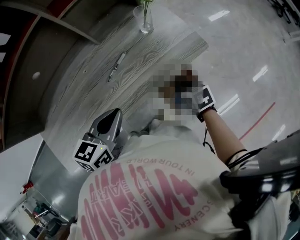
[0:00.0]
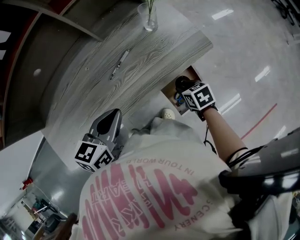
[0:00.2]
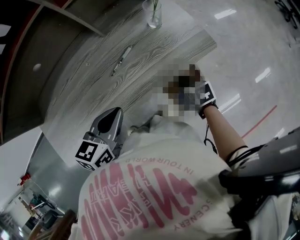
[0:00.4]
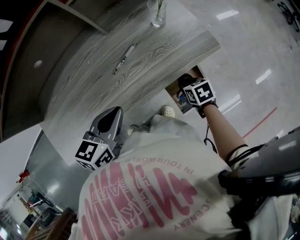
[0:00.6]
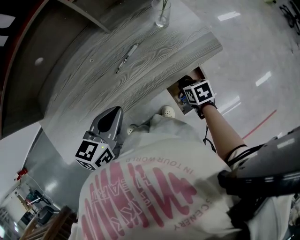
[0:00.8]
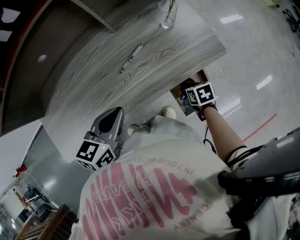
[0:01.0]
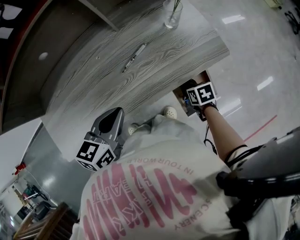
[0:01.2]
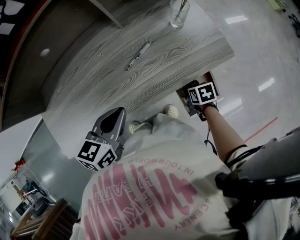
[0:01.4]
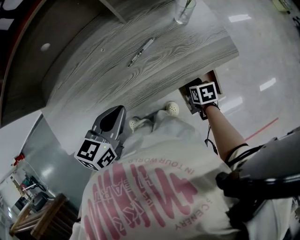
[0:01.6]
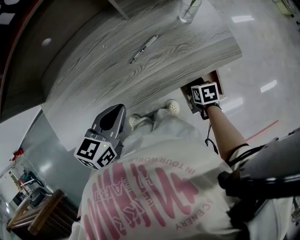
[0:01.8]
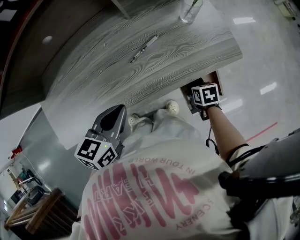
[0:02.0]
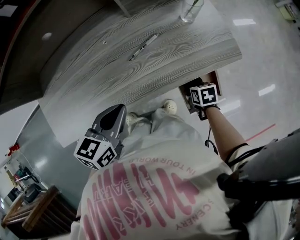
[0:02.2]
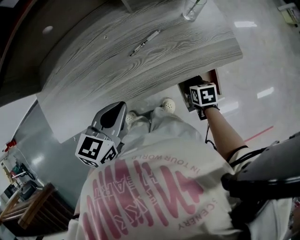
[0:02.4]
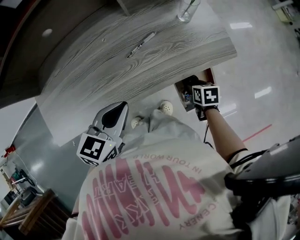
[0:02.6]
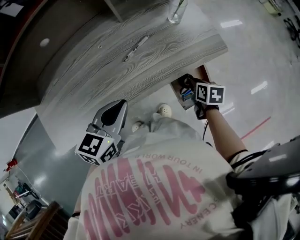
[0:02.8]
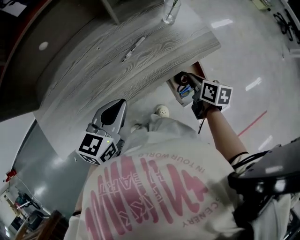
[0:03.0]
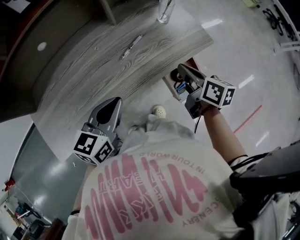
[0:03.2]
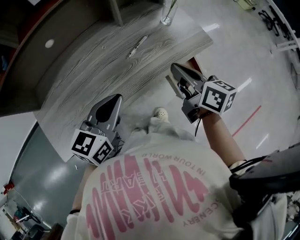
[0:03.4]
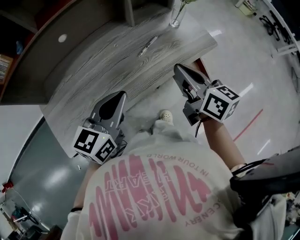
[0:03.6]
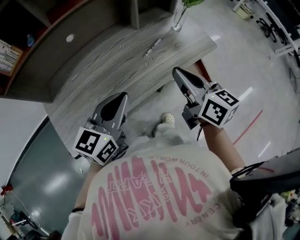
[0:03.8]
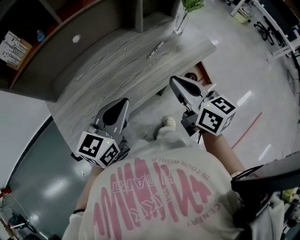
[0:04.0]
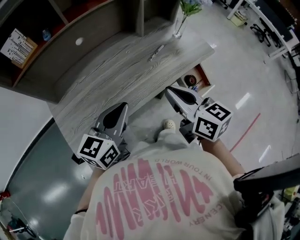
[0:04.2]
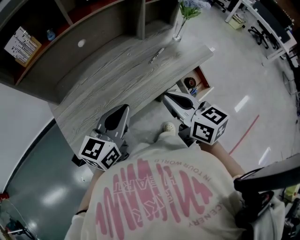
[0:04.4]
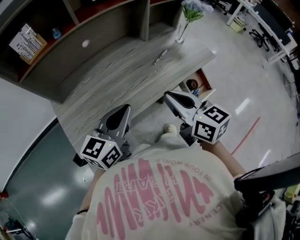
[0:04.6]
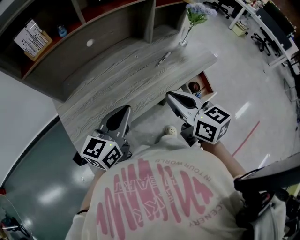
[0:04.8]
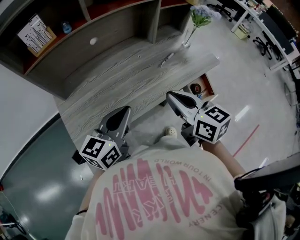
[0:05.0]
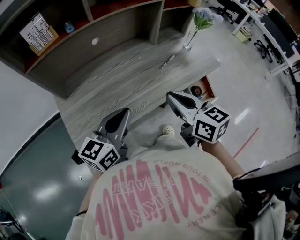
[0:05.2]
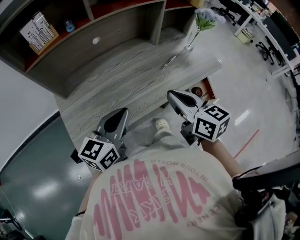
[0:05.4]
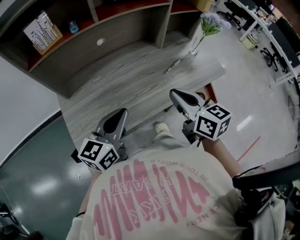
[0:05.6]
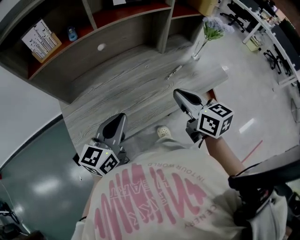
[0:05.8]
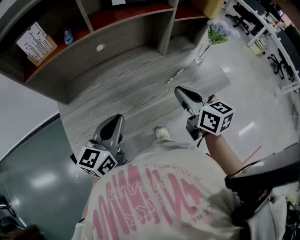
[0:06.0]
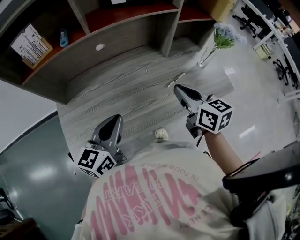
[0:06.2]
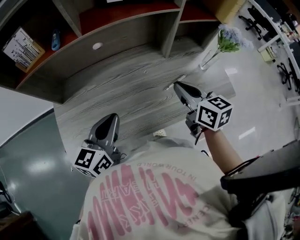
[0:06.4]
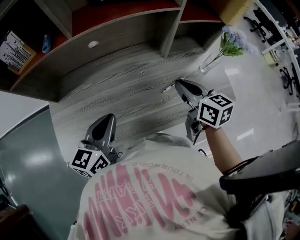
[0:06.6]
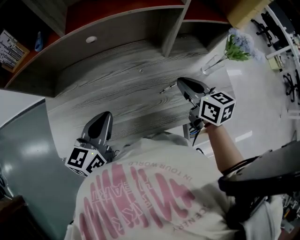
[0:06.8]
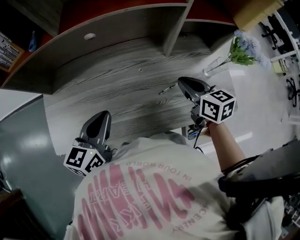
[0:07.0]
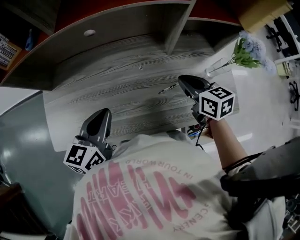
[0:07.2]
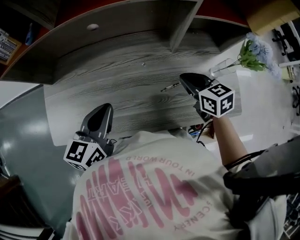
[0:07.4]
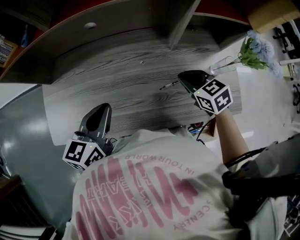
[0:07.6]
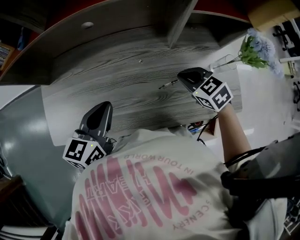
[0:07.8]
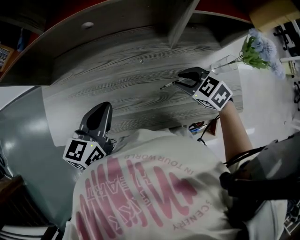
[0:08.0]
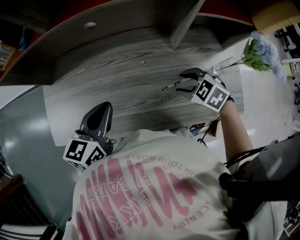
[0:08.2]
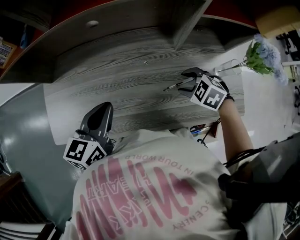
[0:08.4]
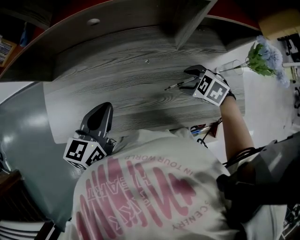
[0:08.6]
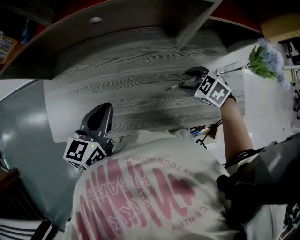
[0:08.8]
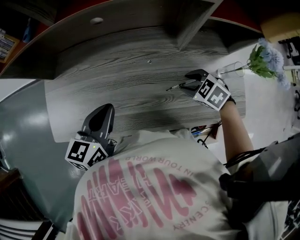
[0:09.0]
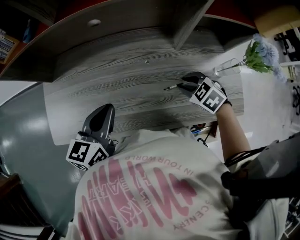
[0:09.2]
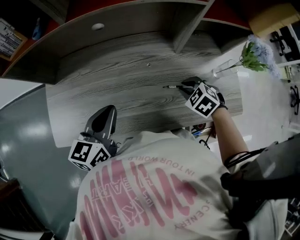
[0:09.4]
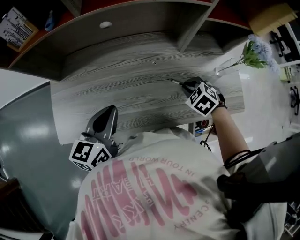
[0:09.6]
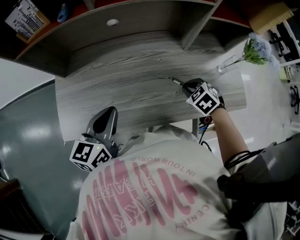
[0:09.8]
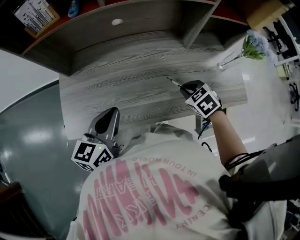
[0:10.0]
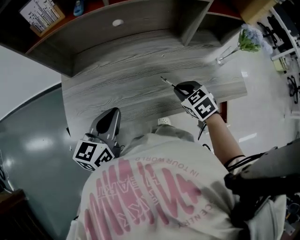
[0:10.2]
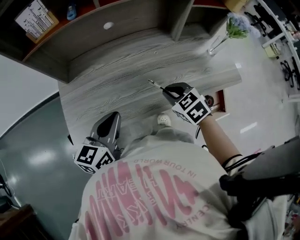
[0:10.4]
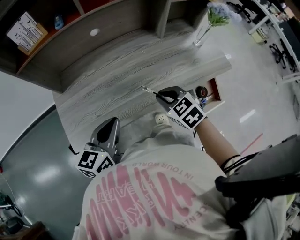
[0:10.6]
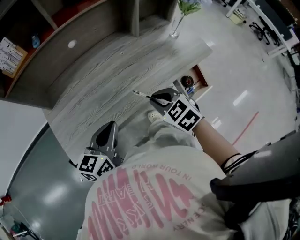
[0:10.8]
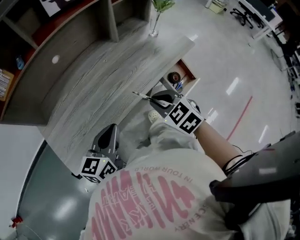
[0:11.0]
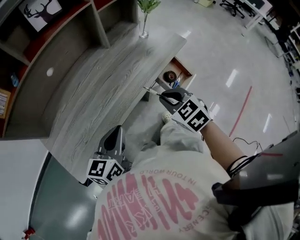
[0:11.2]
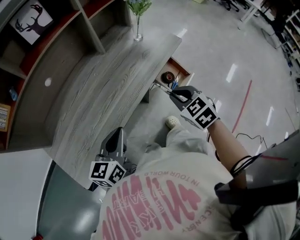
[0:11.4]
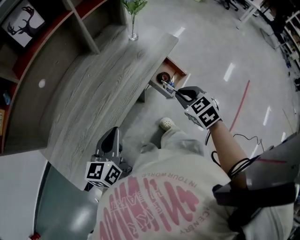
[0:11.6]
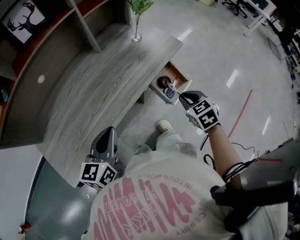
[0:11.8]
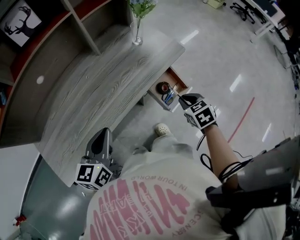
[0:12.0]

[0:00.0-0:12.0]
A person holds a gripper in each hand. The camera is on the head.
0:00.0 to 0:01.6: The left gripper goes roughly 5 cm to the left. The right gripper goes some 10 cm downward.
0:01.6 to 0:03.0: The right gripper moves upward, approximately 15 cm, turns by roughly 40 degrees, and closes.
0:03.0 to 0:04.4: The right gripper goes approximately 40 cm to the left, upward and backward, and swivels roughly 40 degrees. Meanwhile the left gripper moves to the left, backward and upward, some 20 cm.
0:04.4 to 0:06.0: The right gripper heads forward, covering some 15 cm; the left gripper is displaced forward and to the left by roughly 10 cm.
0:06.0 to 0:07.6: The right gripper moves downward, forward and to the right, about 25 cm, and swivels about 50 degrees. Meanwhile the left gripper travels forward, to the right and downward by some 10 cm, and turns by about 20 degrees.
0:07.6 to 0:09.0: The right gripper travels downward by some 5 cm, changes its angle by approximately 30 degrees, and opens its fingers.
0:09.0 to 0:10.4: The left gripper heads to the left and backward, covering some 15 cm; the right gripper moves to the left, backward and upward, approximately 20 cm, rotates roughly 30 degrees, and closes up.
0:10.4 to 0:12.0: The left gripper moves some 15 cm, while the right gripper moves roughly 35 cm, and turns by approximately 40 degrees.

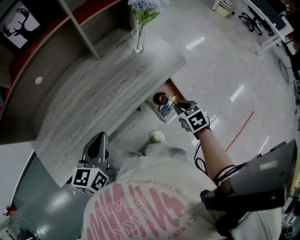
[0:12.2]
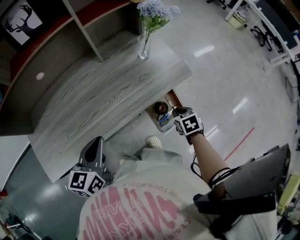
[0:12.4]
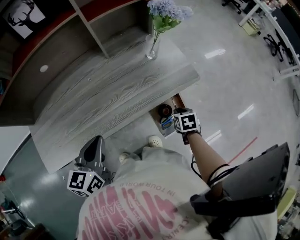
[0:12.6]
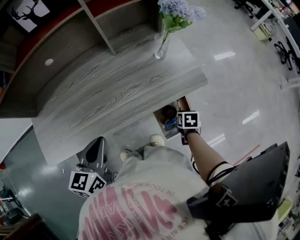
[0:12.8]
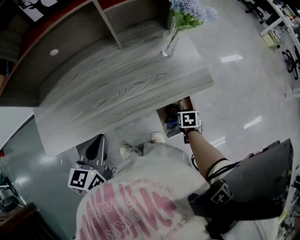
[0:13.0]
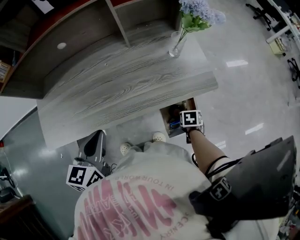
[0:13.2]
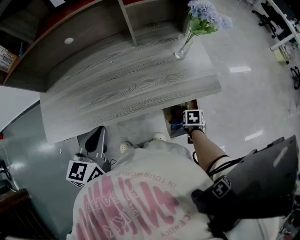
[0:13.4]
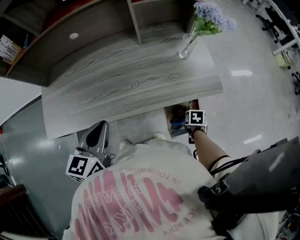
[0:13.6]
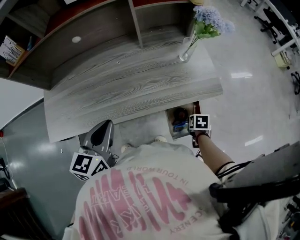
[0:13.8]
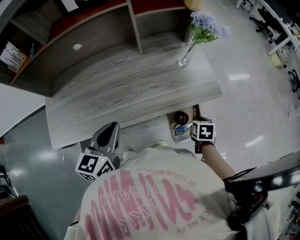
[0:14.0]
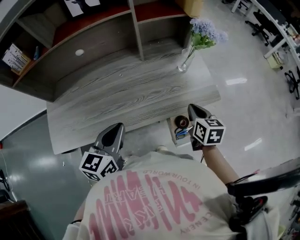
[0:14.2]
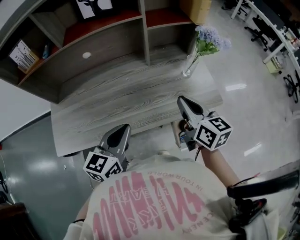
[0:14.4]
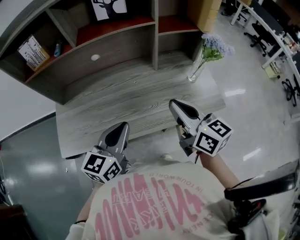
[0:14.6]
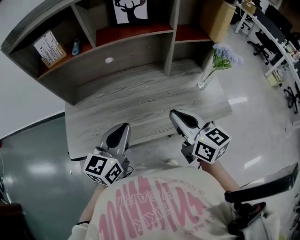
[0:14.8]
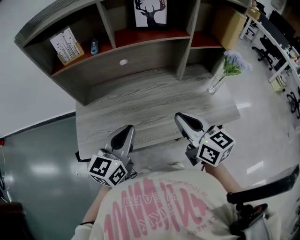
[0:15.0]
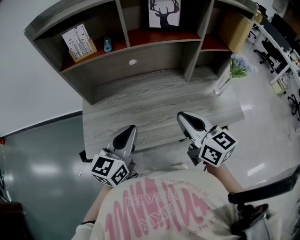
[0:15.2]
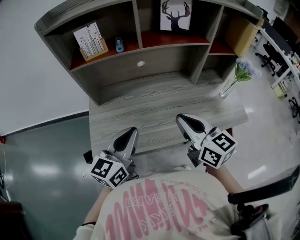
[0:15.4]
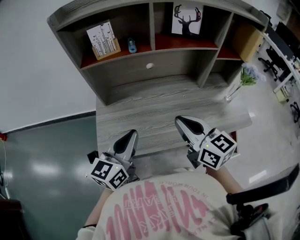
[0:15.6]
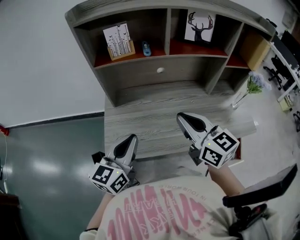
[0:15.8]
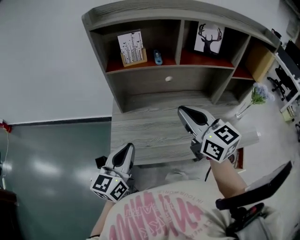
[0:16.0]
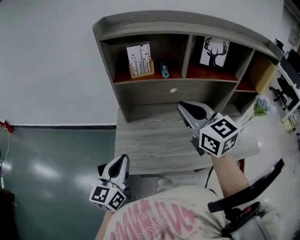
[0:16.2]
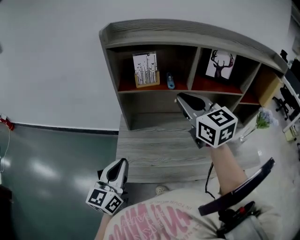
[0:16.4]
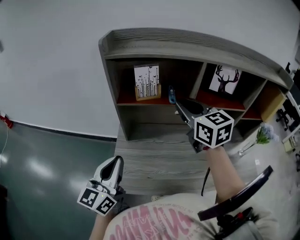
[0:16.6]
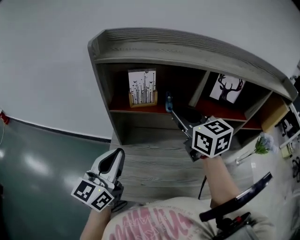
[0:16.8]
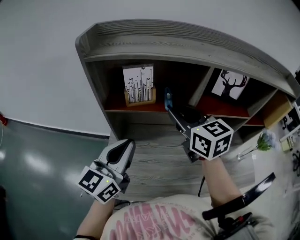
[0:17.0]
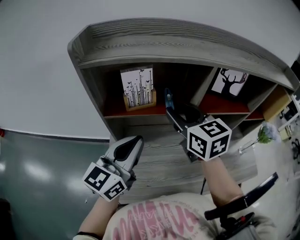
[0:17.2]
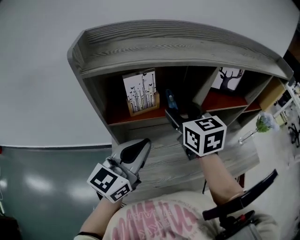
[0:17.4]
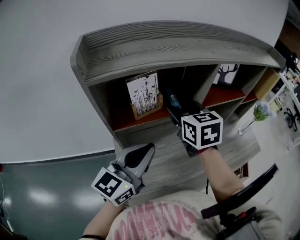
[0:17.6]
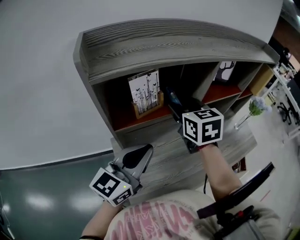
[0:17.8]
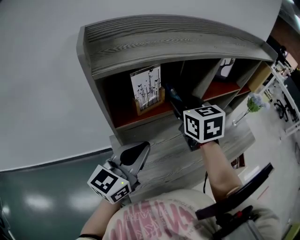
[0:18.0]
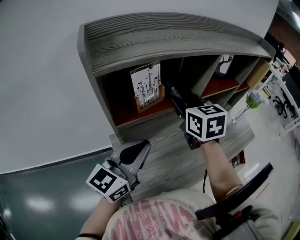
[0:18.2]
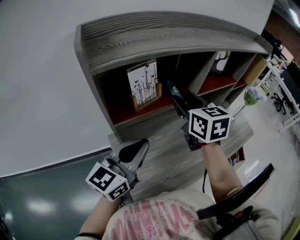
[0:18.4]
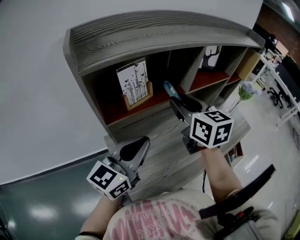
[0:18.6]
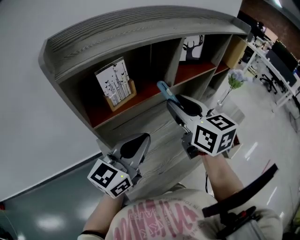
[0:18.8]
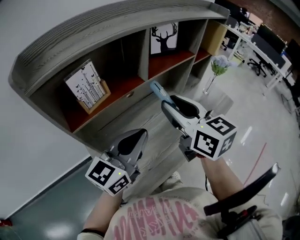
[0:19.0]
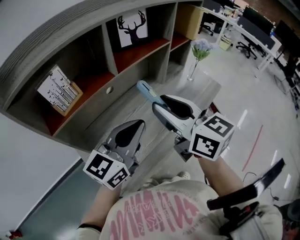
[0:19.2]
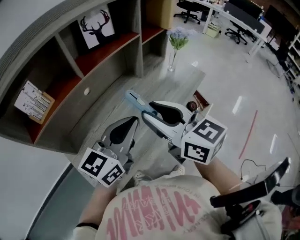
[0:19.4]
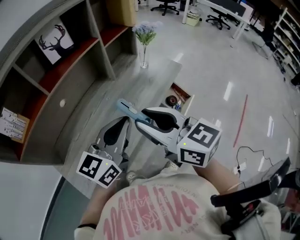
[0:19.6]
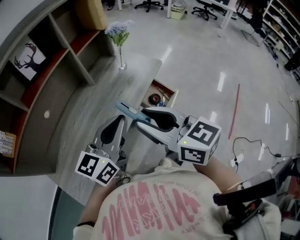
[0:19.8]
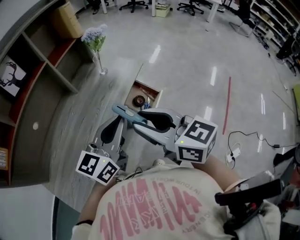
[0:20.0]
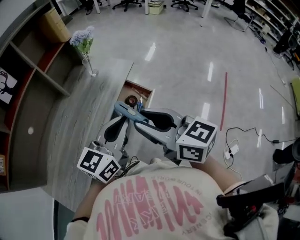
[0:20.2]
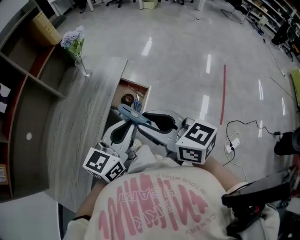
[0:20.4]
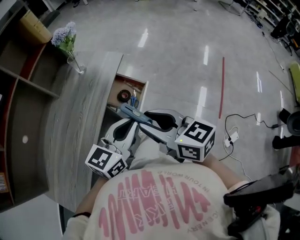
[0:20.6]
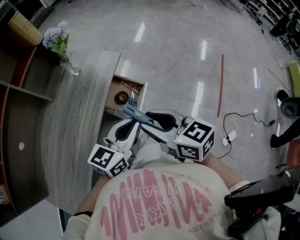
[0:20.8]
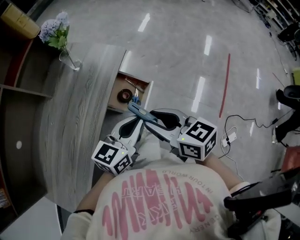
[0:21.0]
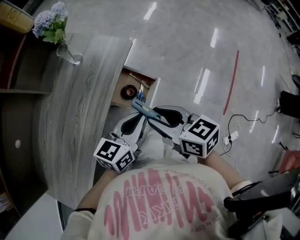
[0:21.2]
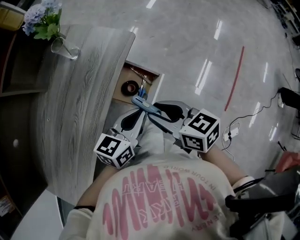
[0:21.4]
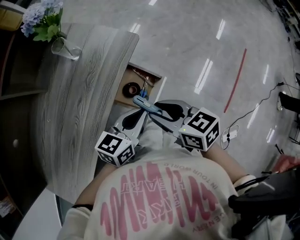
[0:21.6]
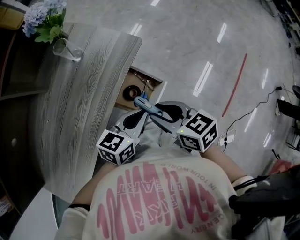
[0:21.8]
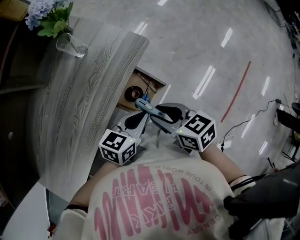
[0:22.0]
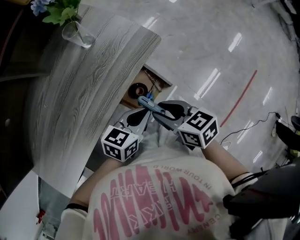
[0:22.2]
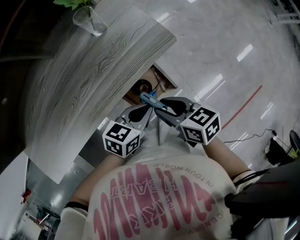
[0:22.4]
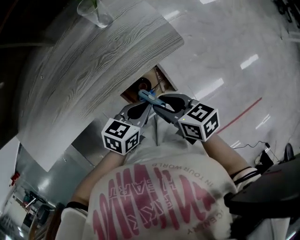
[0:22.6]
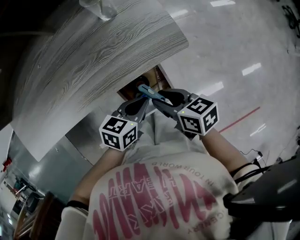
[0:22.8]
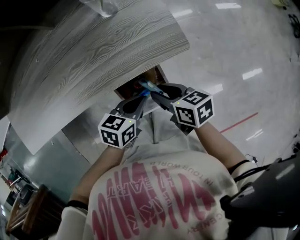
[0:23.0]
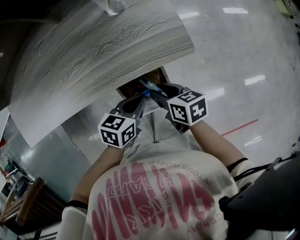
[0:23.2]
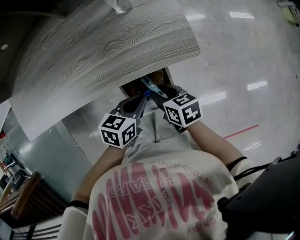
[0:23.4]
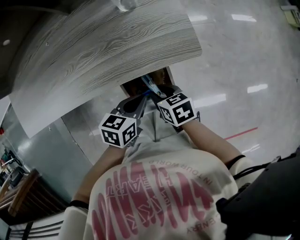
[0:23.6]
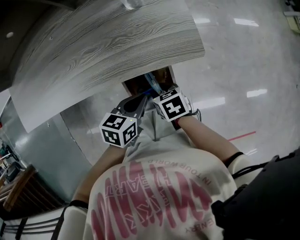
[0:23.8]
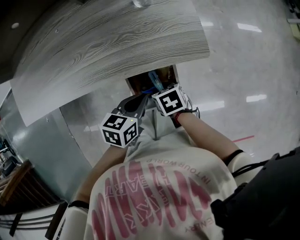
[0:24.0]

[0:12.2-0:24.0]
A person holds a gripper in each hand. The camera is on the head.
0:12.2 to 0:13.6: The left gripper rotates roughly 20 degrees, while the right gripper travels downward by roughly 15 cm, and changes its angle by approximately 20 degrees.
0:13.6 to 0:15.2: The right gripper travels upward by approximately 40 cm, angles its fingers upward, by about 70 degrees, and closes its fingers. The left gripper changes place by some 20 cm.
0:15.2 to 0:16.6: The left gripper goes approximately 20 cm to the left, and swivels some 20 degrees. The right gripper is displaced forward, to the left and upward by approximately 30 cm.
0:16.6 to 0:18.2: The right gripper changes place by approximately 10 cm, turns by approximately 40 degrees, and opens up. Meanwhile the left gripper ends up roughly 15 cm from where it was, and turns by some 40 degrees.
0:18.2 to 0:19.6: The right gripper moves to the right and backward, some 40 cm, and rotates approximately 20 degrees, while the left gripper is displaced to the right by roughly 35 cm, and rotates roughly 20 degrees.
0:19.6 to 0:21.0: The right gripper moves to the right, downward and forward, about 35 cm, and turns by roughly 30 degrees; the left gripper travels to the right and downward by some 35 cm, and swivels some 30 degrees.
0:21.0 to 0:22.6: The two grippers go roughly 15 cm downward. The right gripper swivels some 40 degrees; the left gripper turns by approximately 40 degrees.
0:22.6 to 0:24.0: The left gripper turns by some 30 degrees; the right gripper goes roughly 15 cm downward, and rotates about 40 degrees.
